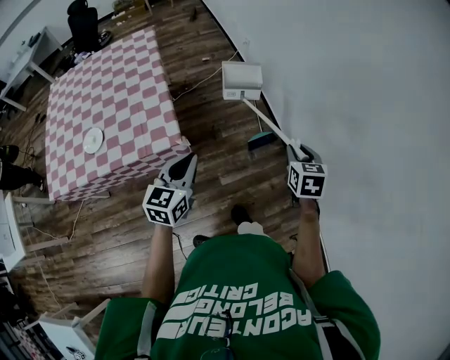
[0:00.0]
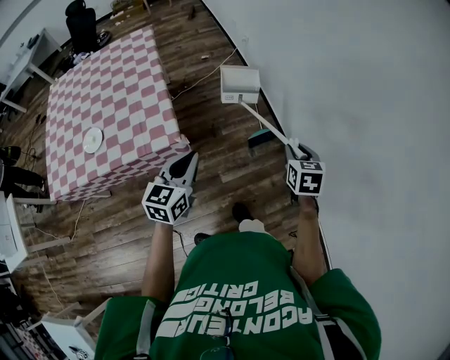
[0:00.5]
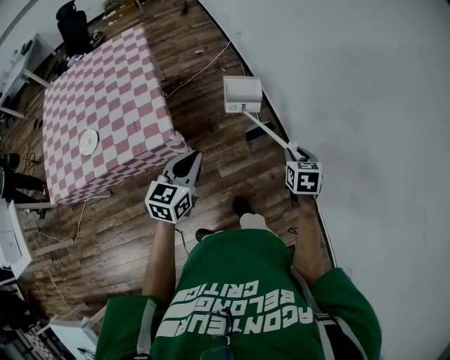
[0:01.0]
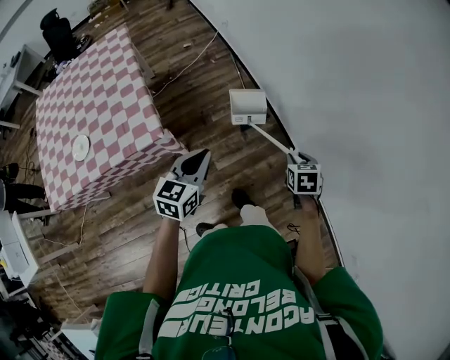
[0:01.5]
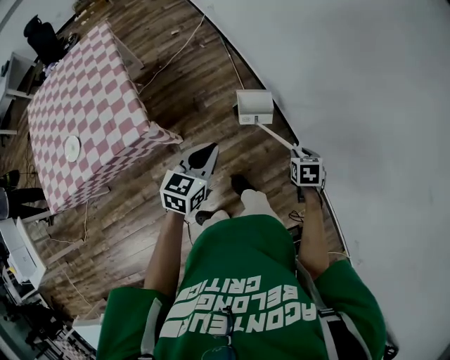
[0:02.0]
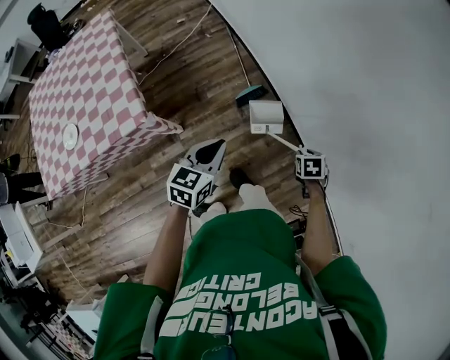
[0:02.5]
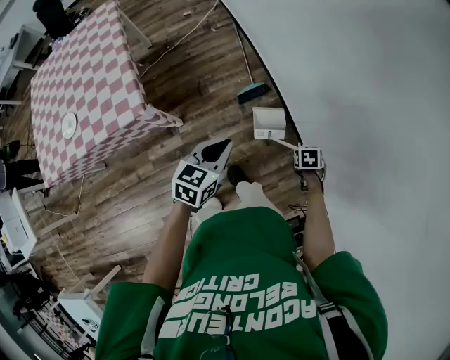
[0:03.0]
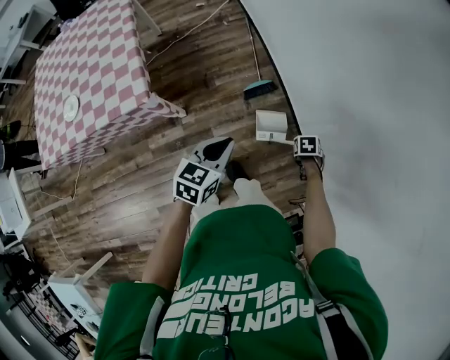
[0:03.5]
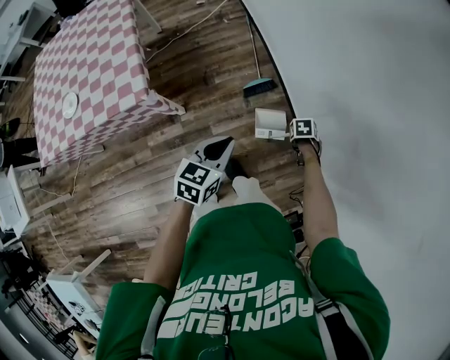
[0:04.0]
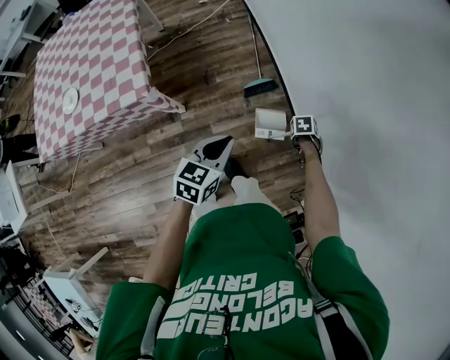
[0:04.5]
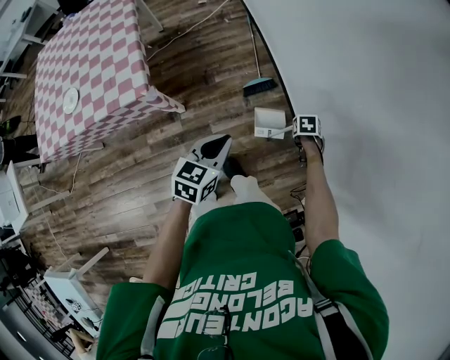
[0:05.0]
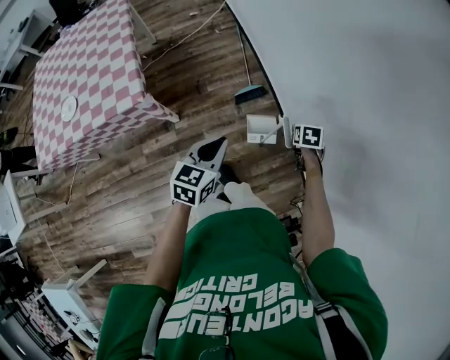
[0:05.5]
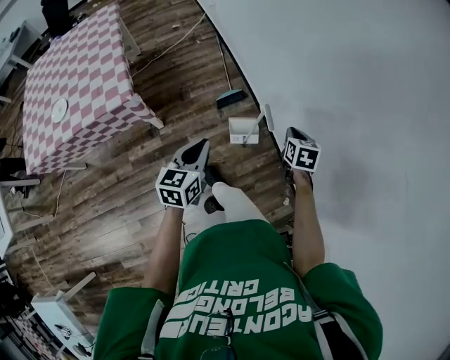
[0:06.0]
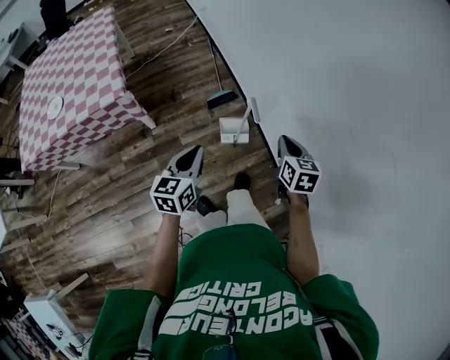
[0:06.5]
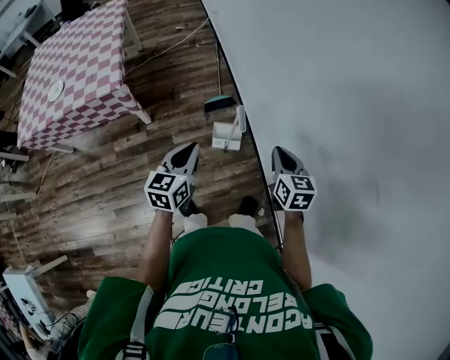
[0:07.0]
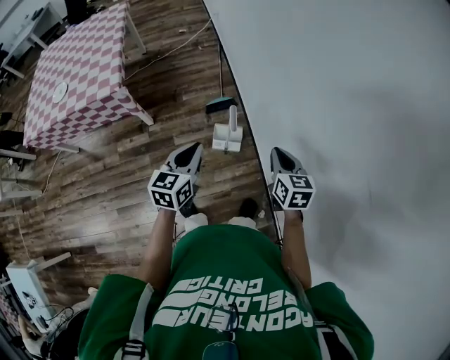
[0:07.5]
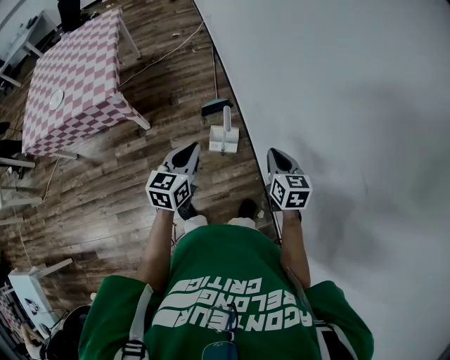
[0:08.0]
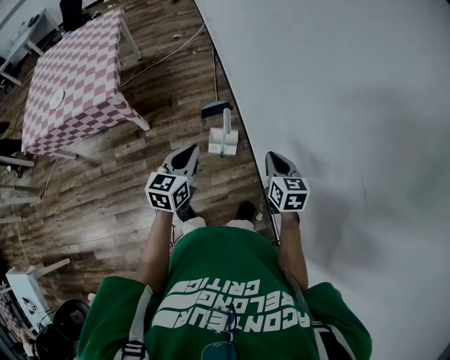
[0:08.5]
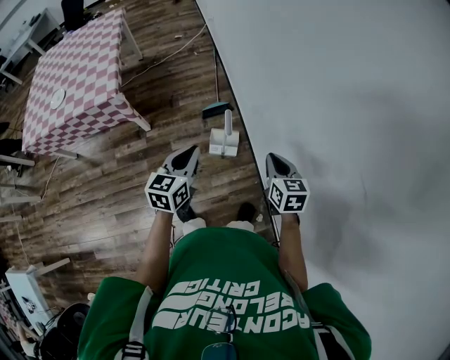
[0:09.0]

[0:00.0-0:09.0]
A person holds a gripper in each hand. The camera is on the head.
0:00.0 to 0:02.0: The right gripper is displaced to the right and downward by approximately 25 cm, and turns by approximately 20 degrees. The left gripper shifts some 20 cm to the right, and rotates about 20 degrees.
0:02.0 to 0:04.5: The right gripper is displaced downward by some 20 cm, and swivels about 30 degrees. Meanwhile the left gripper changes place by about 10 cm.
0:04.5 to 0:07.0: The left gripper ends up some 20 cm from where it was. The right gripper goes some 35 cm upward, tips its fingers upward by roughly 50 degrees, and closes up.
0:07.0 to 0:09.0: Both grippers travel together to the right, some 5 cm.

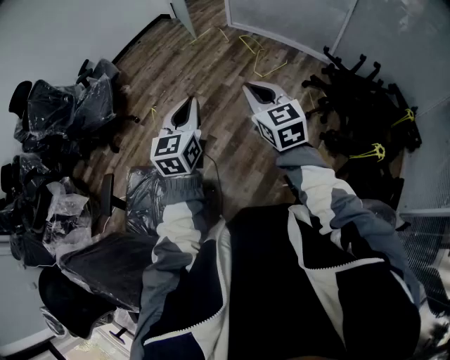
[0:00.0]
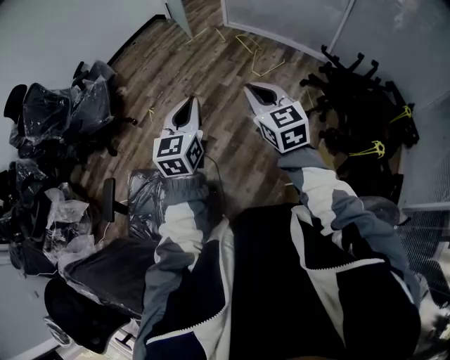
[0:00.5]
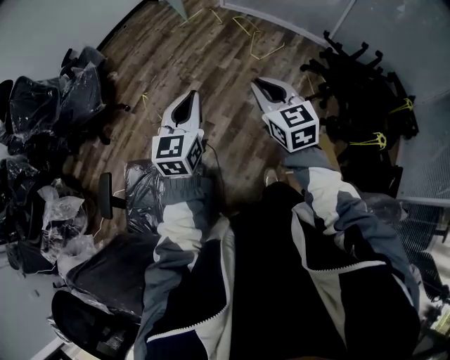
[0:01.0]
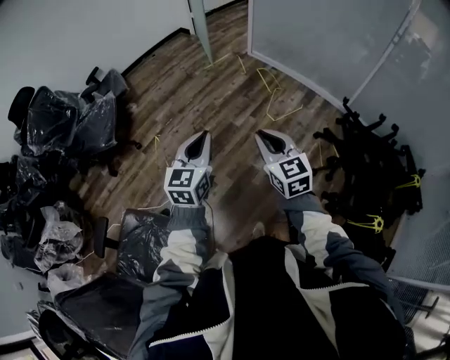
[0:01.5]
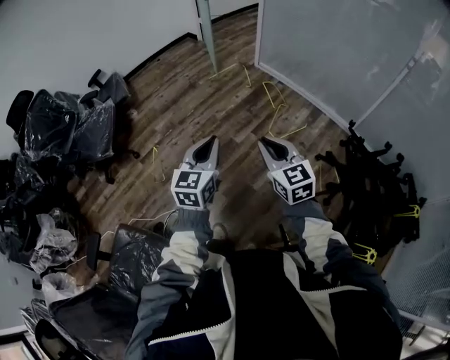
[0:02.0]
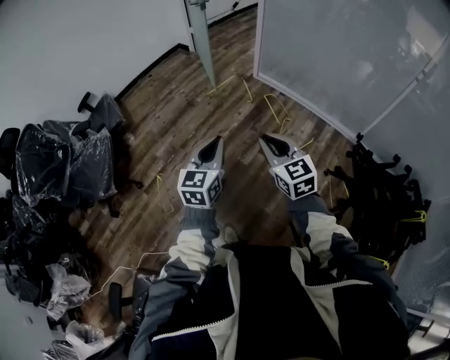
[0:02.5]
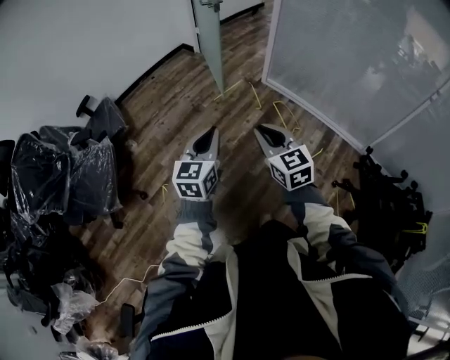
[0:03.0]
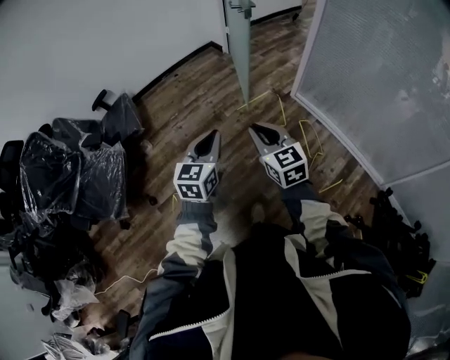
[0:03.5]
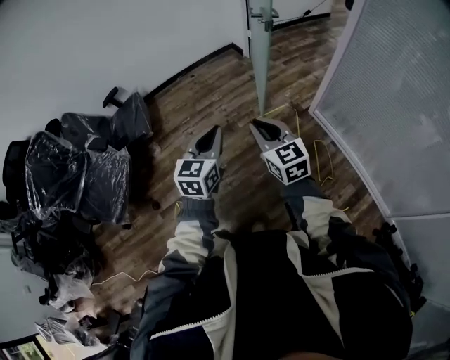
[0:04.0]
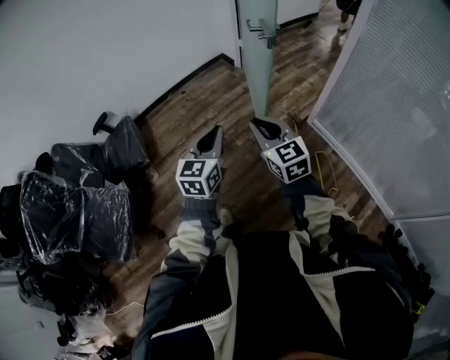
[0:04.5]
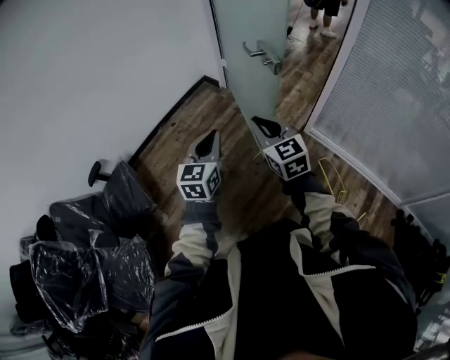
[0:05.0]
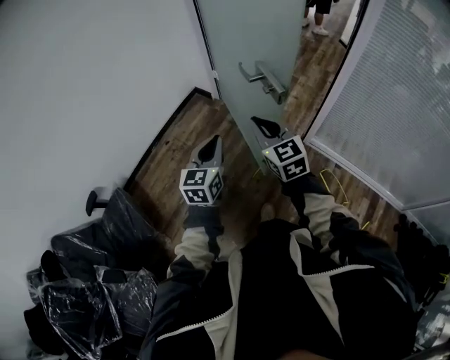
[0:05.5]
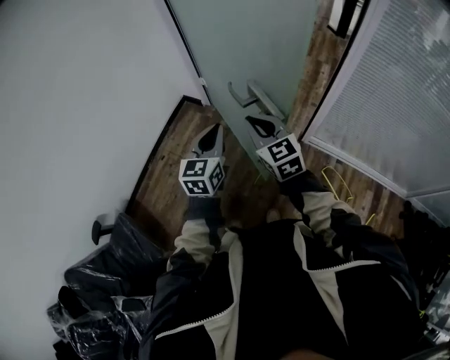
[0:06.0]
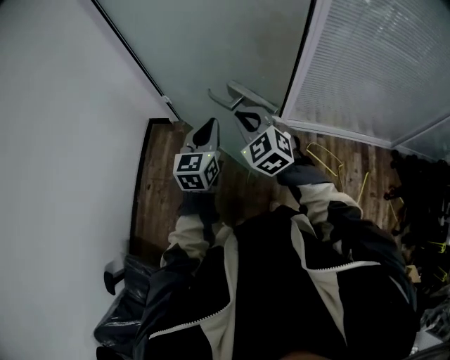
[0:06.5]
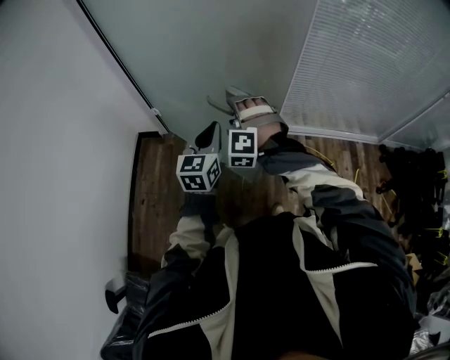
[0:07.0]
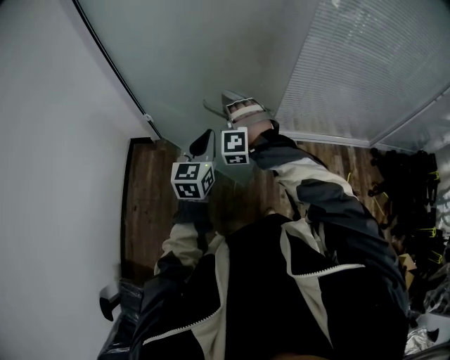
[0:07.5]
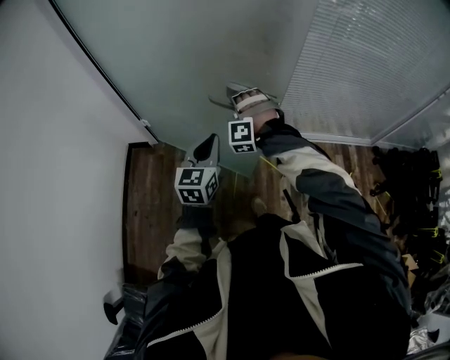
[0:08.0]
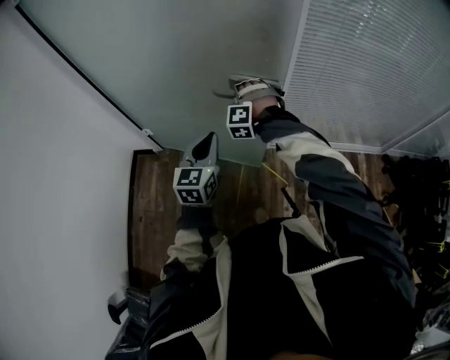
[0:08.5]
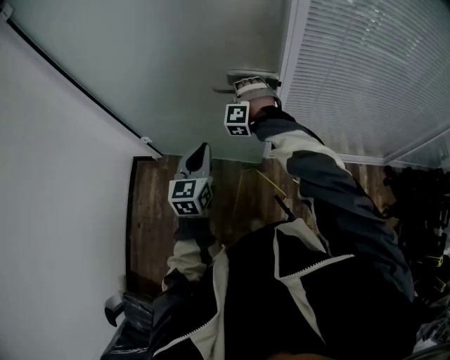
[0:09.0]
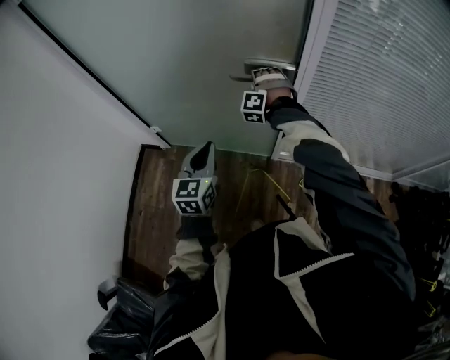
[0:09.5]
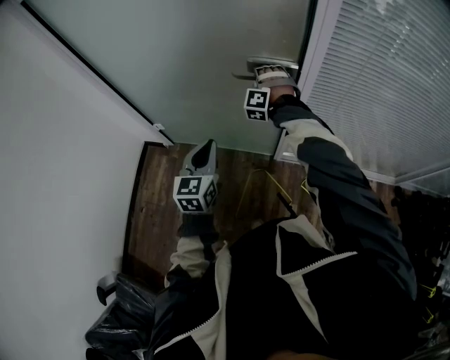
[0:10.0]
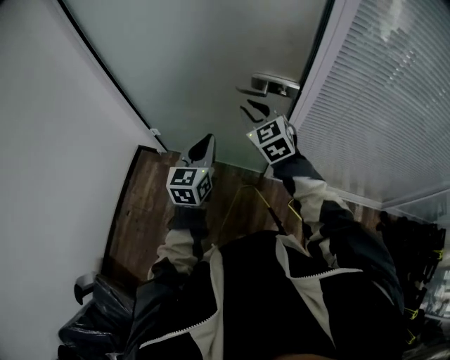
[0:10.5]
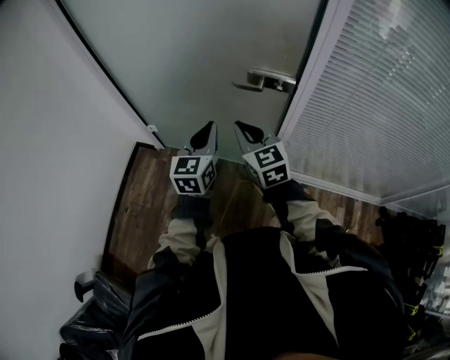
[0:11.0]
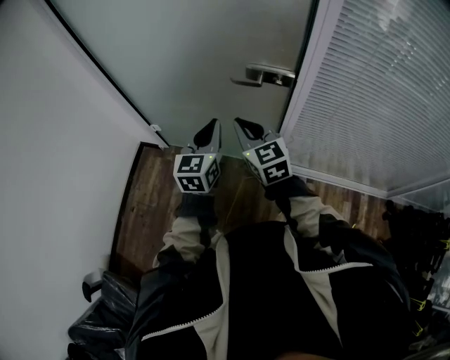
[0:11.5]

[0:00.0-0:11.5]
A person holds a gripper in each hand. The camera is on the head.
0:00.0 to 0:02.0: The two grippers go about 35 cm forward.
0:02.0 to 0:04.0: The two grippers travel together, forward, roughly 70 cm.
0:04.0 to 0:06.0: Both grippers are carried some 60 cm. The right gripper rotates some 30 degrees; the left gripper swivels some 30 degrees.
0:06.0 to 0:07.5: The right gripper changes place by roughly 15 cm, changes its angle by approximately 90 degrees, and opens its fingers, while the left gripper ends up approximately 5 cm from where it was, and rotates about 30 degrees.
0:07.5 to 0:09.5: The right gripper moves forward, approximately 40 cm. The left gripper is displaced forward by some 20 cm.
0:09.5 to 0:11.5: The left gripper changes place by about 5 cm, while the right gripper is displaced backward and upward by some 25 cm, rotates around the line of its fingers by approximately 80 degrees, clockwise from behind, and closes up.

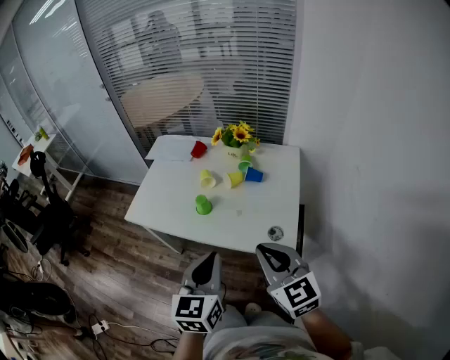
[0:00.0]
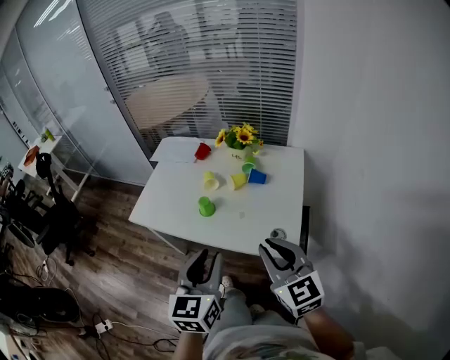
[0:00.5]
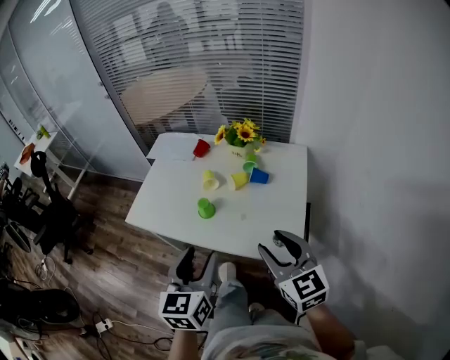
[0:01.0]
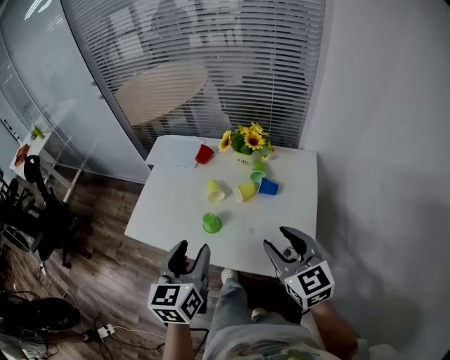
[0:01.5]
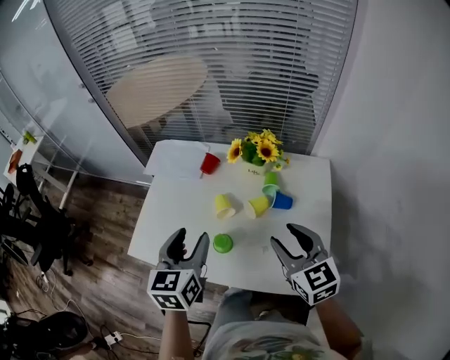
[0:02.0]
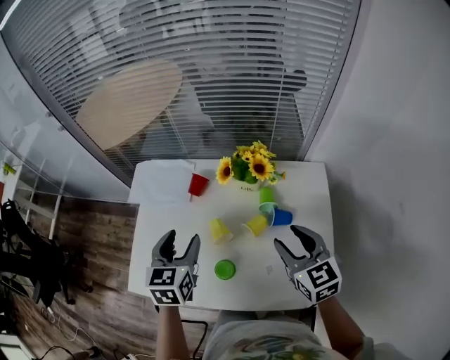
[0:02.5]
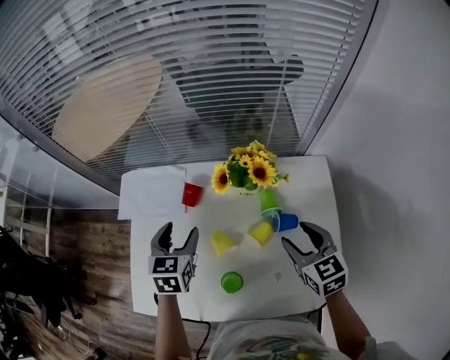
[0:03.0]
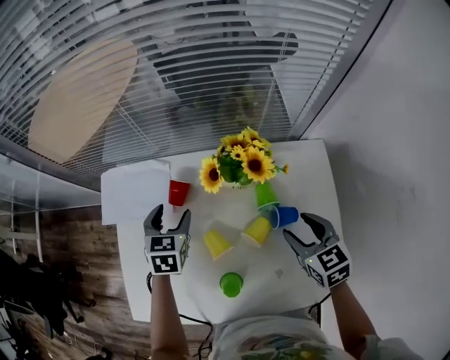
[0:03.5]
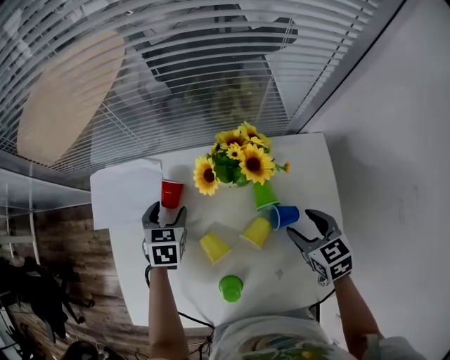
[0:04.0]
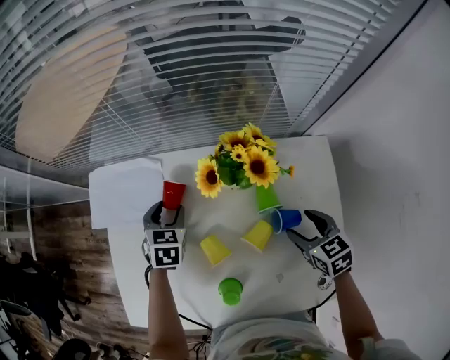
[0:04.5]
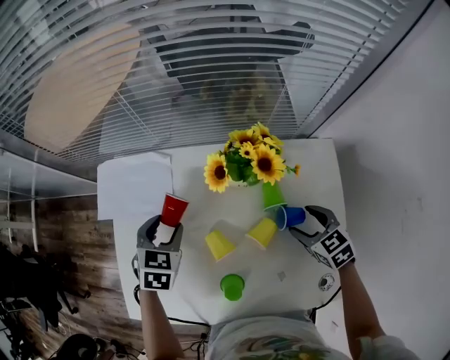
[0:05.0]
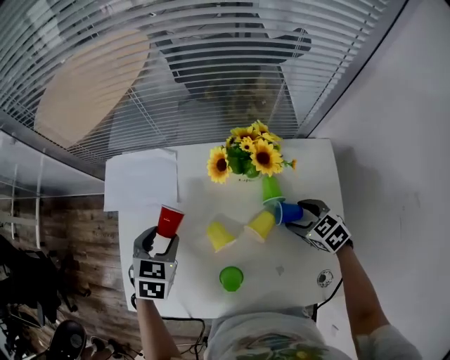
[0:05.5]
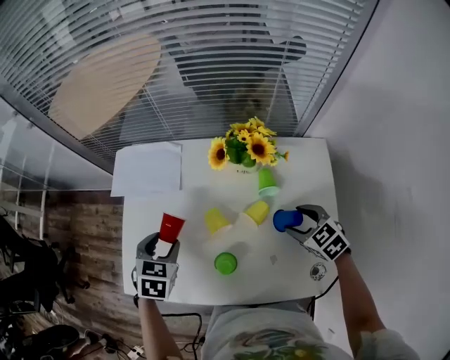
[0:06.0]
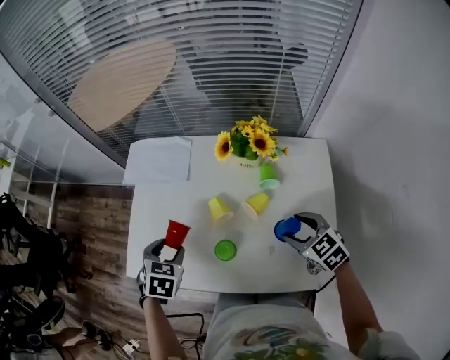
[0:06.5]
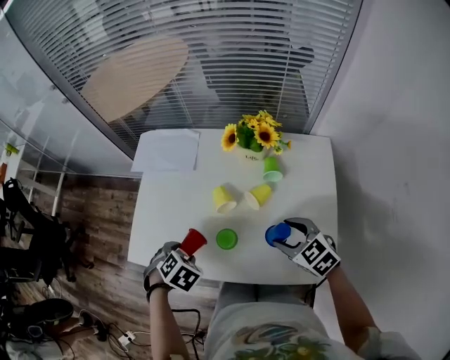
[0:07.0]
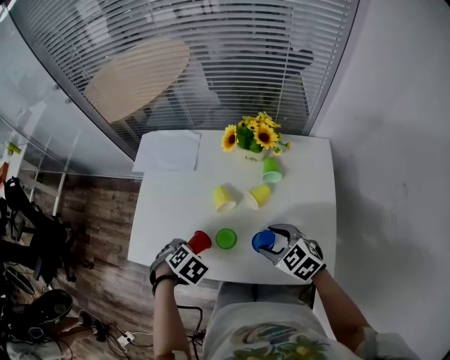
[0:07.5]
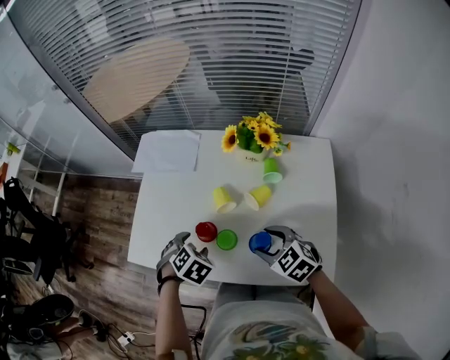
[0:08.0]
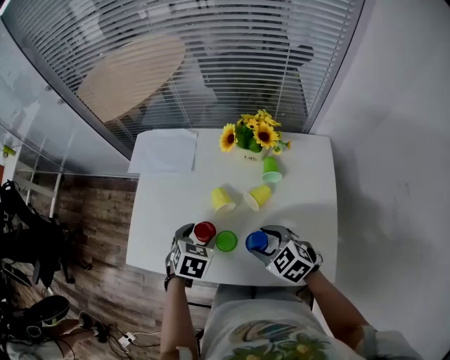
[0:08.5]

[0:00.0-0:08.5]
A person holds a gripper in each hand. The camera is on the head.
0:00.0 to 0:02.0: The two grippers go roughly 30 cm forward. The left gripper opens up; the right gripper opens.
0:02.0 to 0:04.0: The right gripper is displaced downward, forward and to the right by roughly 20 cm, and changes its angle by approximately 30 degrees. Meanwhile the left gripper heads forward and downward, covering some 35 cm, and turns by about 40 degrees.
0:04.0 to 0:06.5: The left gripper goes some 25 cm backward, while the right gripper travels backward by about 10 cm, and rotates roughly 30 degrees.
0:06.5 to 0:08.5: The right gripper shifts by about 10 cm, while the left gripper moves roughly 10 cm.
